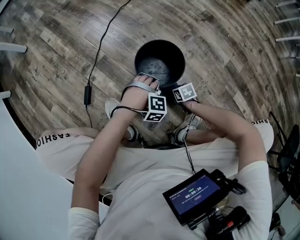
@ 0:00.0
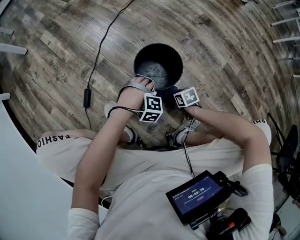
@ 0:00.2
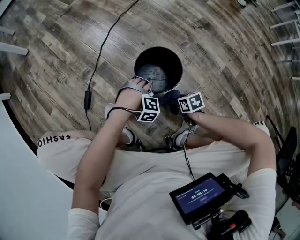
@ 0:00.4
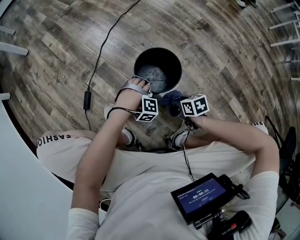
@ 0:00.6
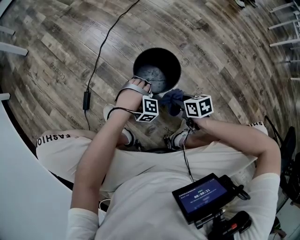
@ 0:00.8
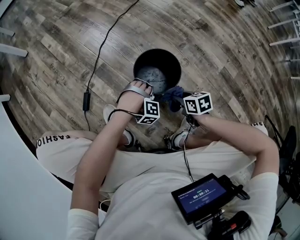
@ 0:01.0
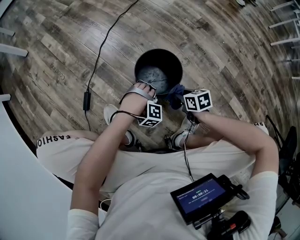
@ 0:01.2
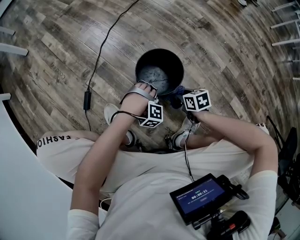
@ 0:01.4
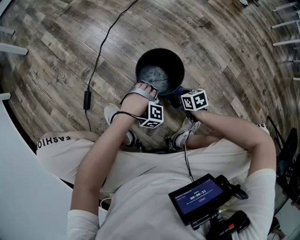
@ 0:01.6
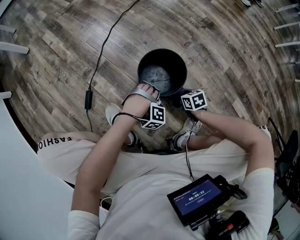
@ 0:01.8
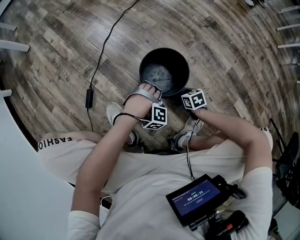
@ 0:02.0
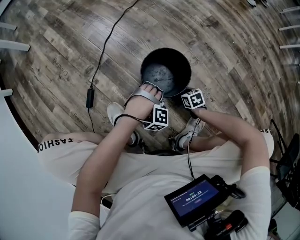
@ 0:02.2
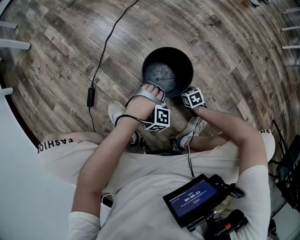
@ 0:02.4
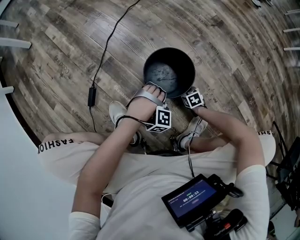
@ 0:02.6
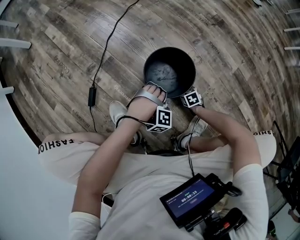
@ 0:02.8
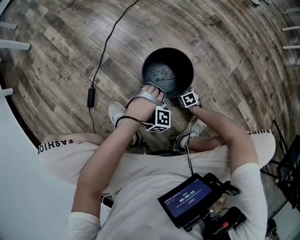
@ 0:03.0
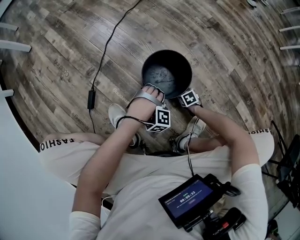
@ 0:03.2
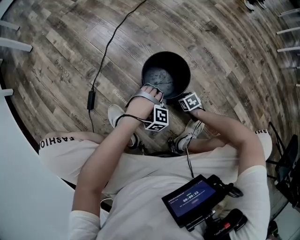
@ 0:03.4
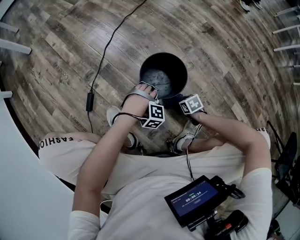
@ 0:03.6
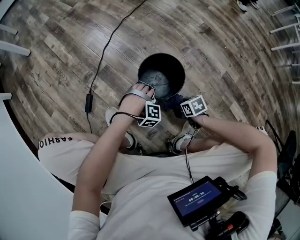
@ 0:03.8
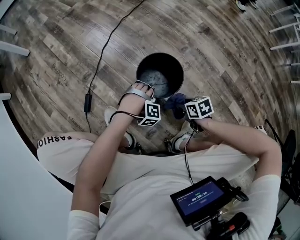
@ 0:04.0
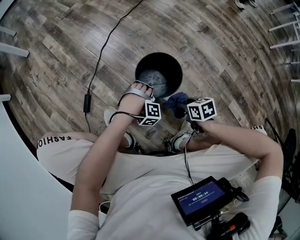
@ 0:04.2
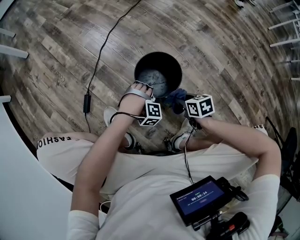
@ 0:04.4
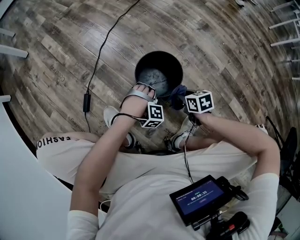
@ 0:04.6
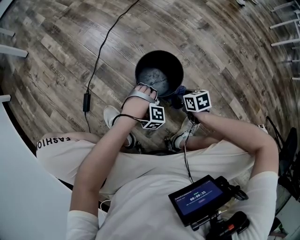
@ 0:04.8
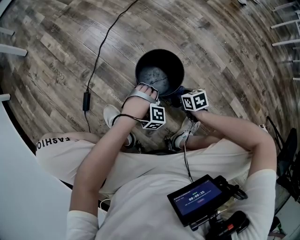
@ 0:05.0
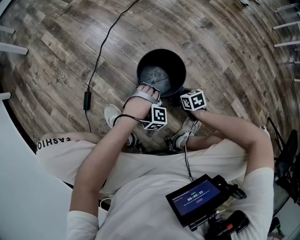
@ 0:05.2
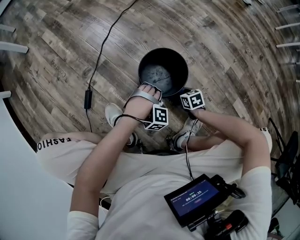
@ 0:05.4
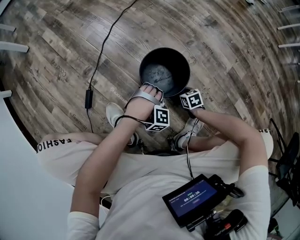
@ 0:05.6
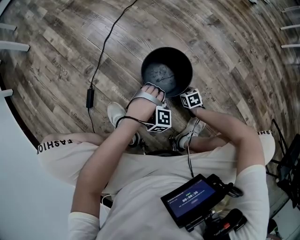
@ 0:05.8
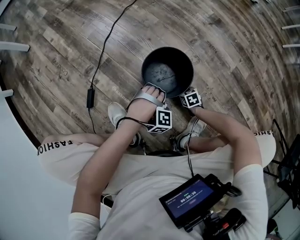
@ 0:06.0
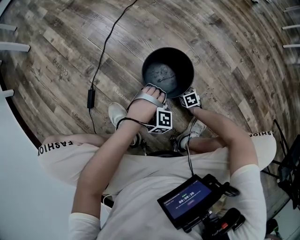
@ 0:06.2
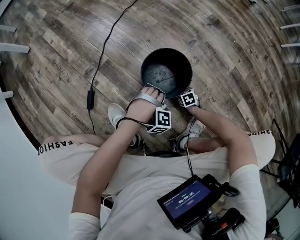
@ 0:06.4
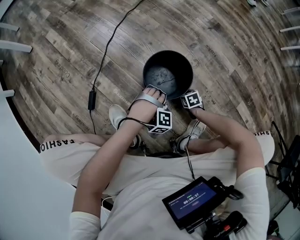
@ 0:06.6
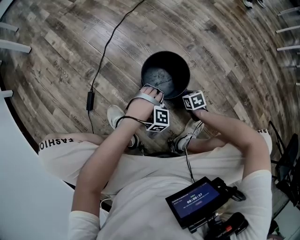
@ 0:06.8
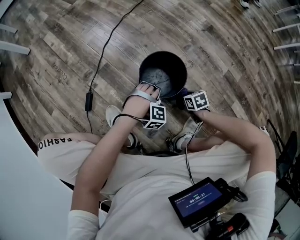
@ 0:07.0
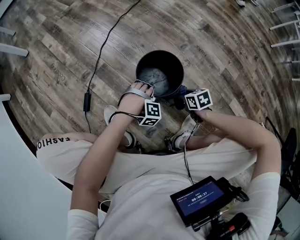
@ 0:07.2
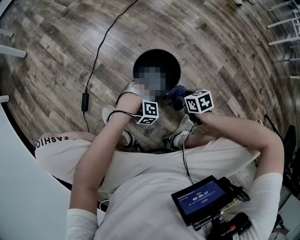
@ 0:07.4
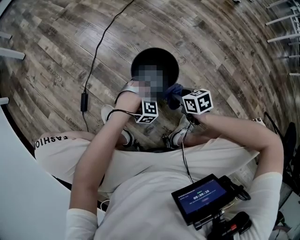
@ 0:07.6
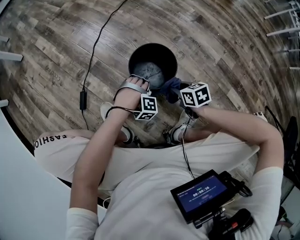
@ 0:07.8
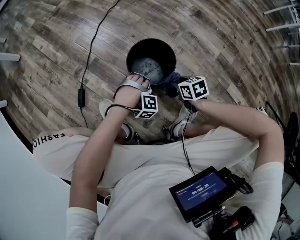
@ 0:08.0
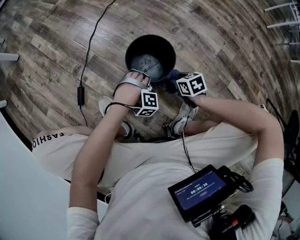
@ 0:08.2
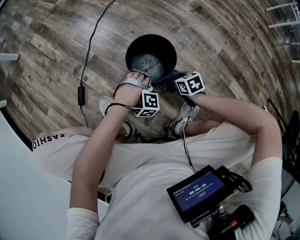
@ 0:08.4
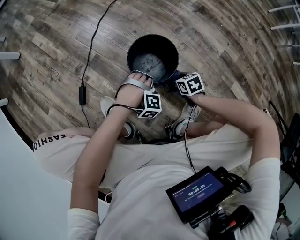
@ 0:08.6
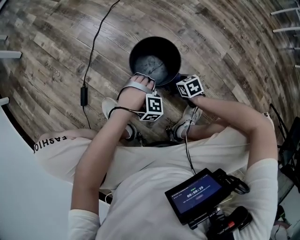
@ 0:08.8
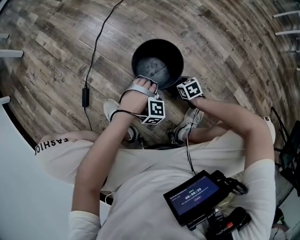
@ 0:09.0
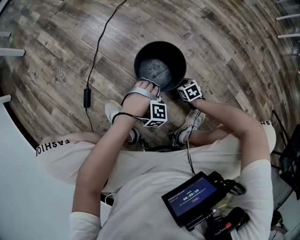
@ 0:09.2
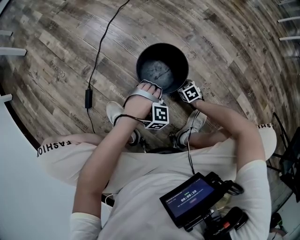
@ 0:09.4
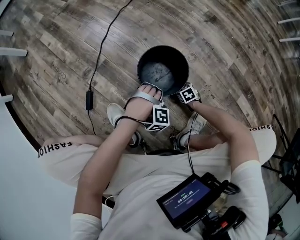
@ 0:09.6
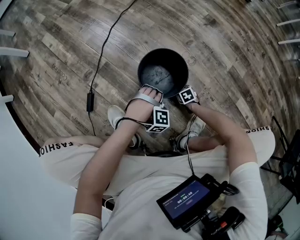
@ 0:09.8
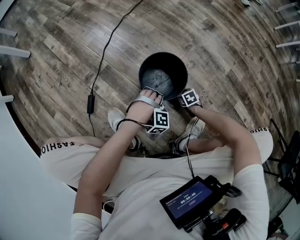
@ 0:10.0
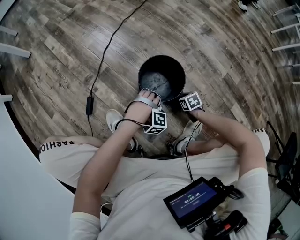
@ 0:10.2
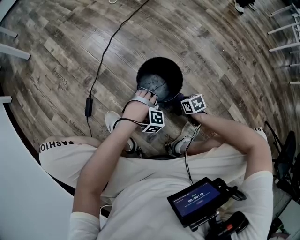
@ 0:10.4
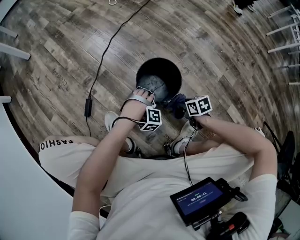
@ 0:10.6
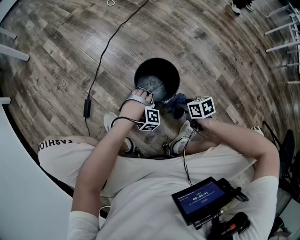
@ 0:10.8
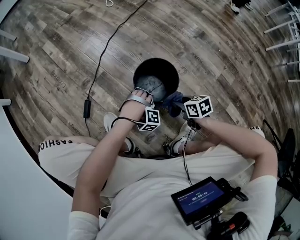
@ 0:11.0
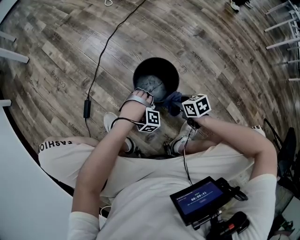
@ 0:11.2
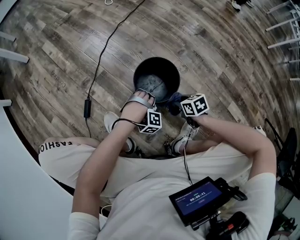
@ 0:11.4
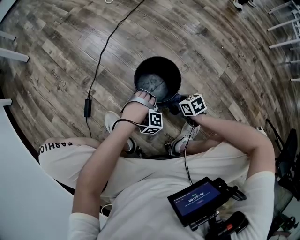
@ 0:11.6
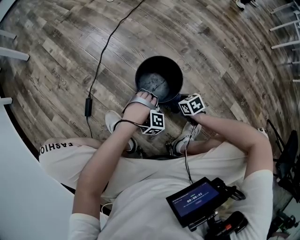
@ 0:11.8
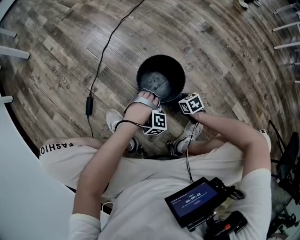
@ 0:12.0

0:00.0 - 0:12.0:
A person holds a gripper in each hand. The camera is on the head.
0:00.0 - 0:01.6: The right gripper heads upward, covering about 10 cm.
0:01.6 - 0:03.0: The right gripper goes roughly 15 cm downward.
0:03.0 - 0:04.4: The right gripper shifts roughly 20 cm upward.
0:04.4 - 0:06.0: The right gripper moves downward, about 20 cm.
0:06.0 - 0:07.6: The right gripper heads upward, covering roughly 20 cm.
0:07.6 - 0:09.0: The right gripper shifts some 15 cm downward.
0:09.0 - 0:10.4: The right gripper travels downward and back again, some 10 cm each way.
0:10.4 - 0:12.0: The right gripper moves approximately 10 cm upward and comes back.

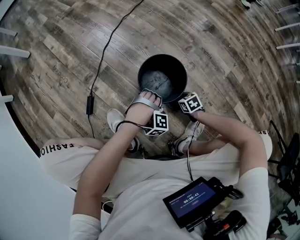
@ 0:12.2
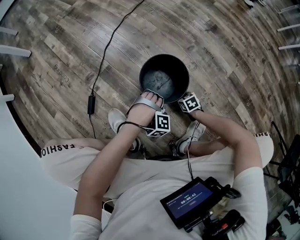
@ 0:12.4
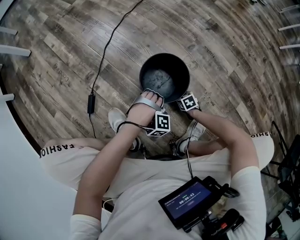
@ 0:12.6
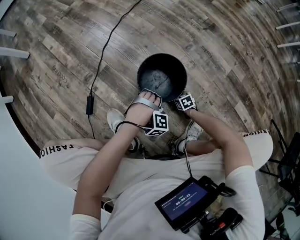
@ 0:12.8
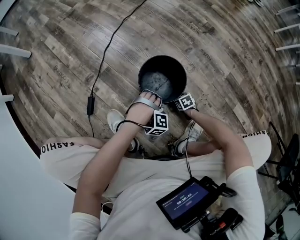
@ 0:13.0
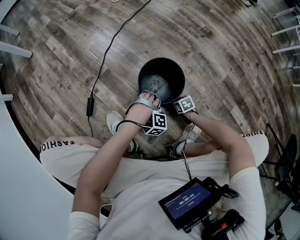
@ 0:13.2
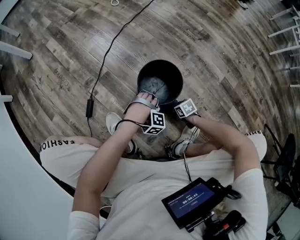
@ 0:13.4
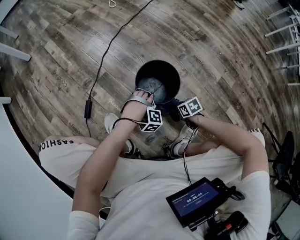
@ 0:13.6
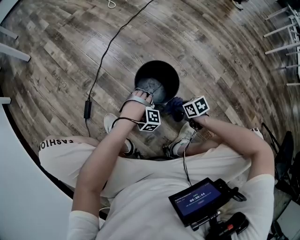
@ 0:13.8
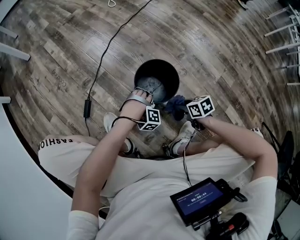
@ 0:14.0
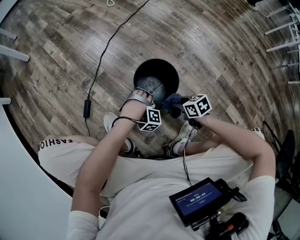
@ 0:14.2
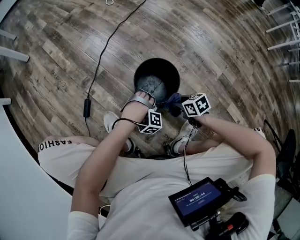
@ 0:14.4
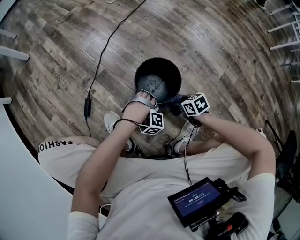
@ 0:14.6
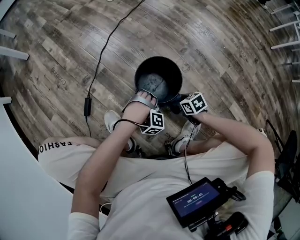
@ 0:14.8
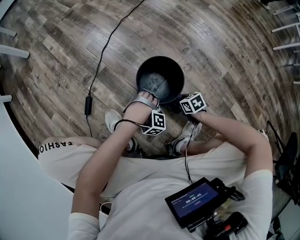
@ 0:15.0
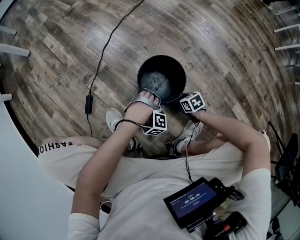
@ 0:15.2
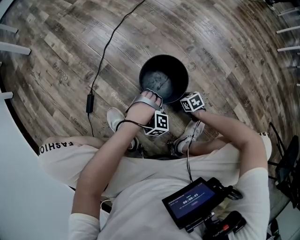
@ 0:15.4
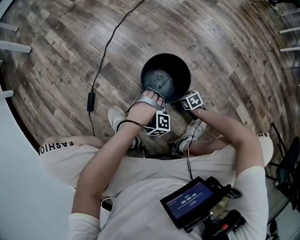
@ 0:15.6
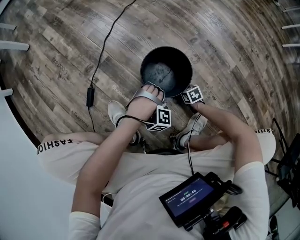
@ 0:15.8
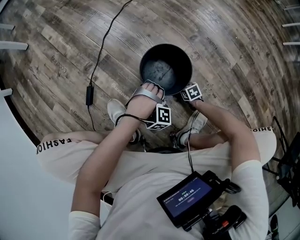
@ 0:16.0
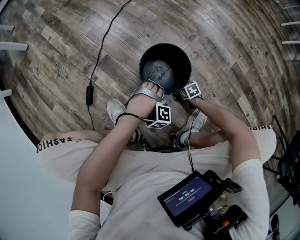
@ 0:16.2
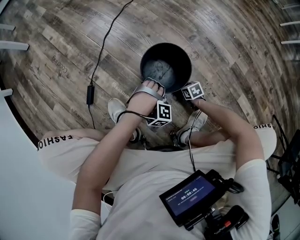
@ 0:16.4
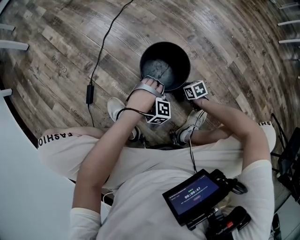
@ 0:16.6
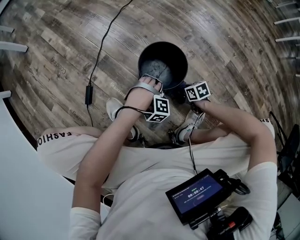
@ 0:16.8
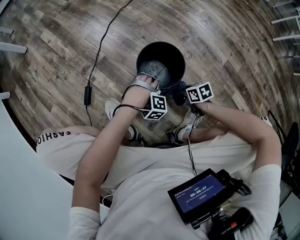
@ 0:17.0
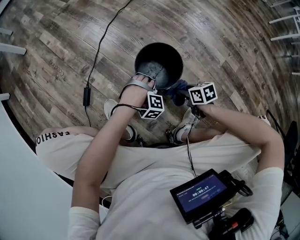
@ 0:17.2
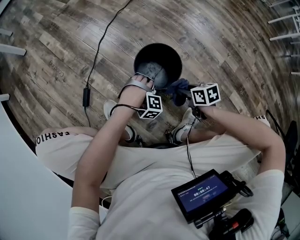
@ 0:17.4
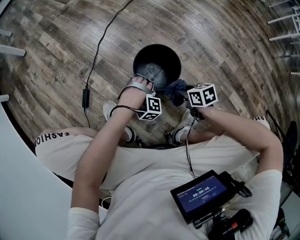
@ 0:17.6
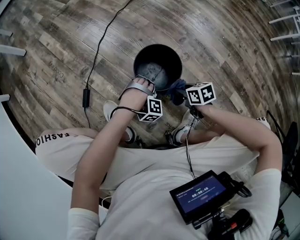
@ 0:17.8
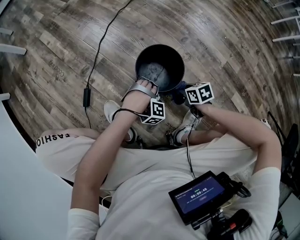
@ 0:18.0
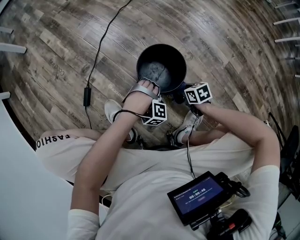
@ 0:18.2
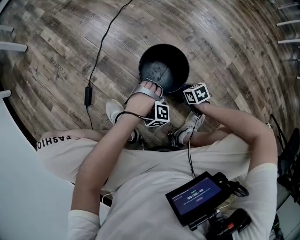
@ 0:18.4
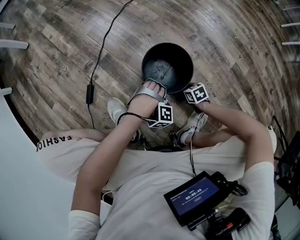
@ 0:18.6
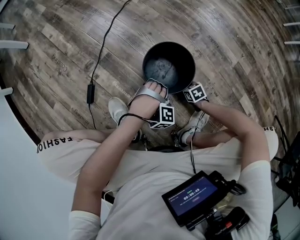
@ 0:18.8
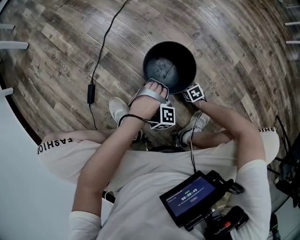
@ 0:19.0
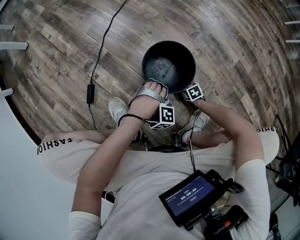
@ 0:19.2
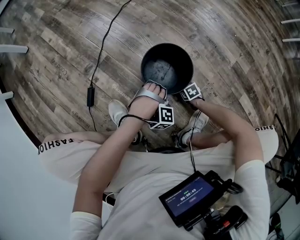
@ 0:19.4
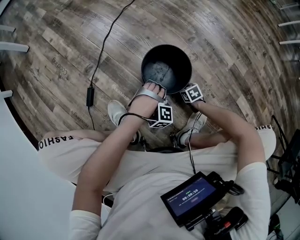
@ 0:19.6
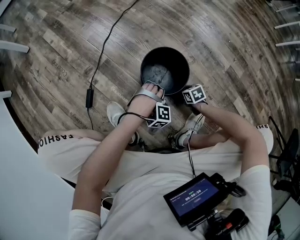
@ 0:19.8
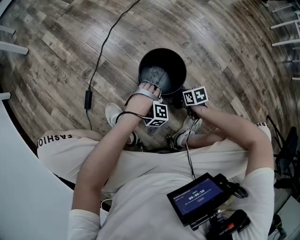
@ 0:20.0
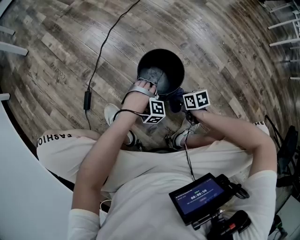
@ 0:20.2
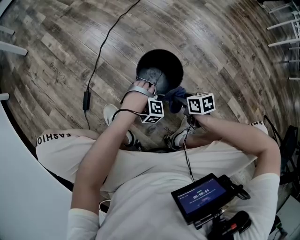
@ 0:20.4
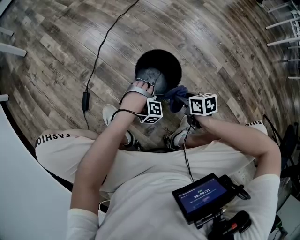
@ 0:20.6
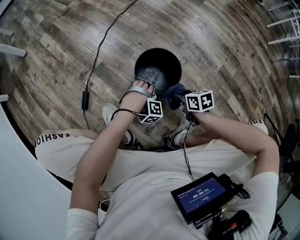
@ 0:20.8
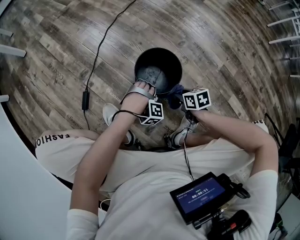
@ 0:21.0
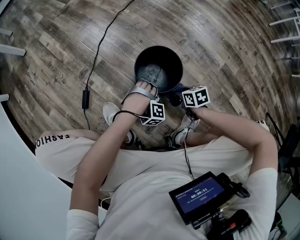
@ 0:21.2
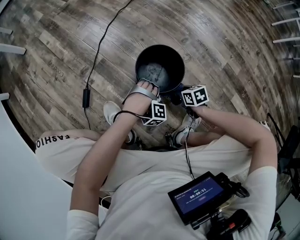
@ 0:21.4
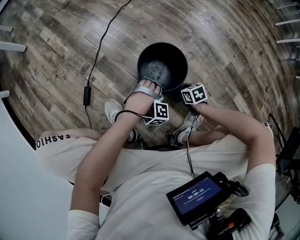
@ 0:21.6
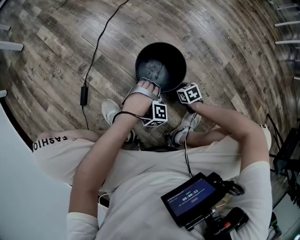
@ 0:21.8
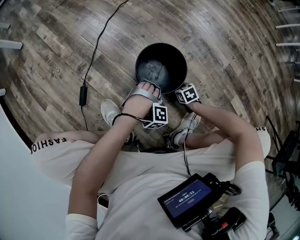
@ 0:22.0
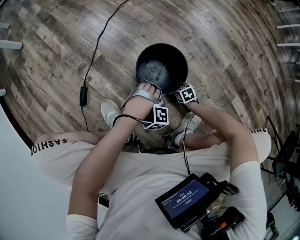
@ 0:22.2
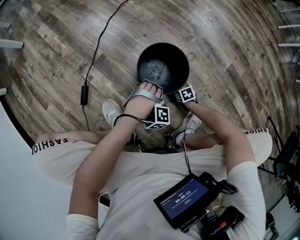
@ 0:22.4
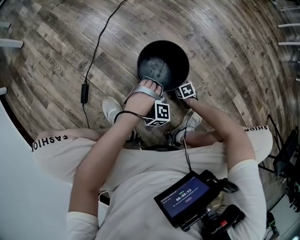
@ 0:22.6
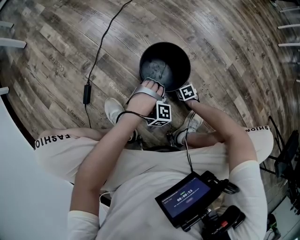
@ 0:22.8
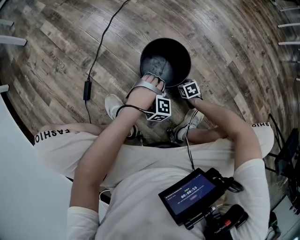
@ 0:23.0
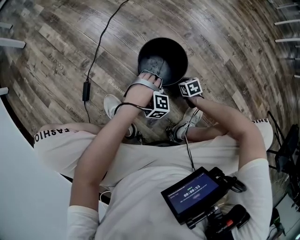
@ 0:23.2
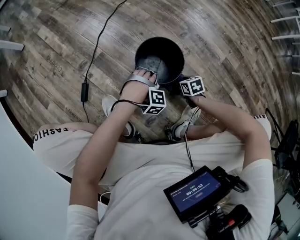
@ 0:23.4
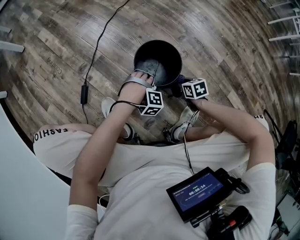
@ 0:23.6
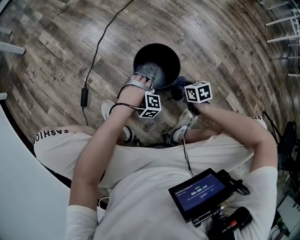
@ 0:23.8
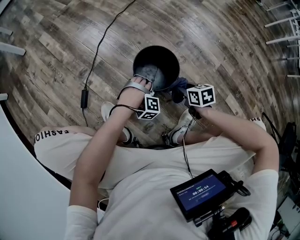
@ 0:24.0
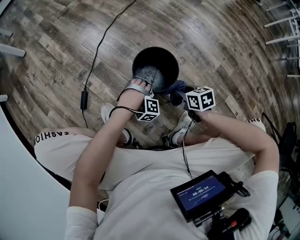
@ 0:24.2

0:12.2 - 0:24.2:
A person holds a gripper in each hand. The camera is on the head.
0:12.2 - 0:13.8: The right gripper goes approximately 10 cm upward.
0:13.8 - 0:15.2: The right gripper moves downward, some 10 cm.
0:15.2 - 0:16.6: The right gripper reaches roughly 10 cm downward, then returns.
0:16.6 - 0:18.2: The right gripper moves upward, about 10 cm.
0:18.2 - 0:19.8: The right gripper heads downward, covering some 10 cm.
0:19.8 - 0:21.2: The right gripper moves upward, about 10 cm.
0:21.2 - 0:22.6: The right gripper heads downward, covering roughly 15 cm.
0:22.6 - 0:24.2: The right gripper is displaced upward by approximately 25 cm.
